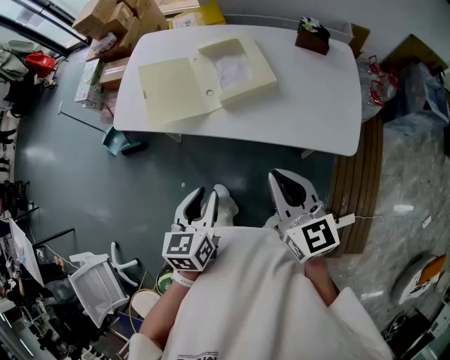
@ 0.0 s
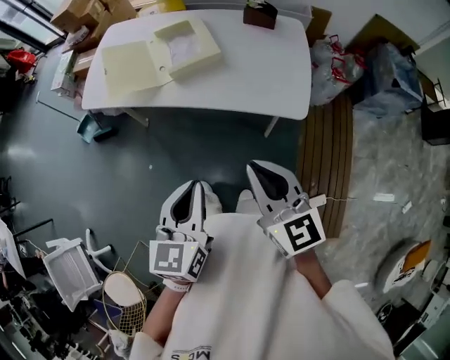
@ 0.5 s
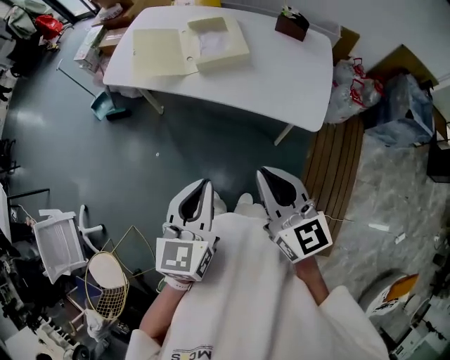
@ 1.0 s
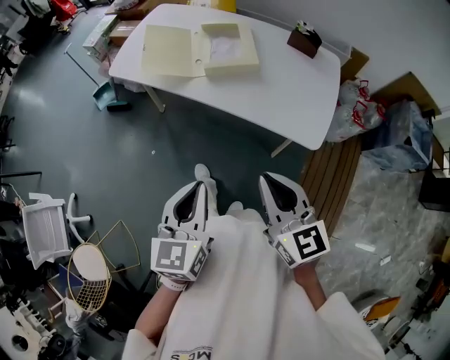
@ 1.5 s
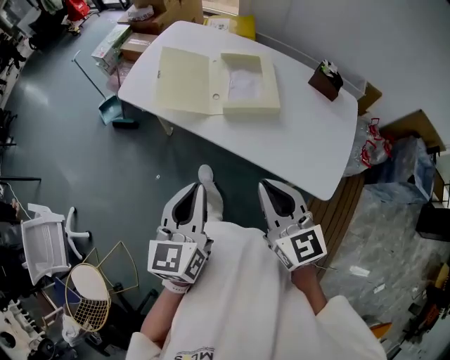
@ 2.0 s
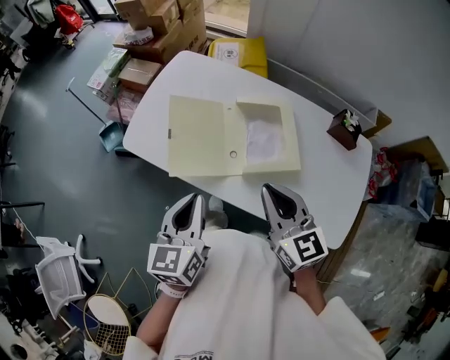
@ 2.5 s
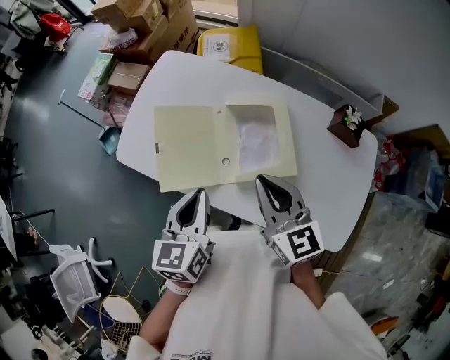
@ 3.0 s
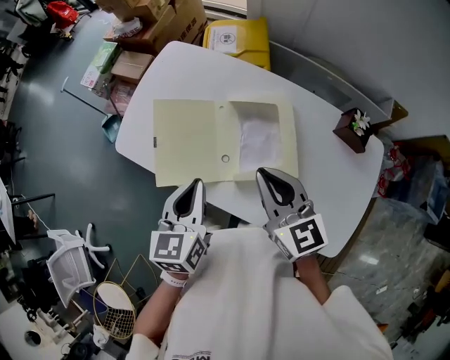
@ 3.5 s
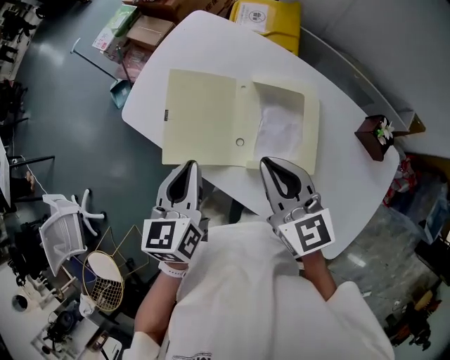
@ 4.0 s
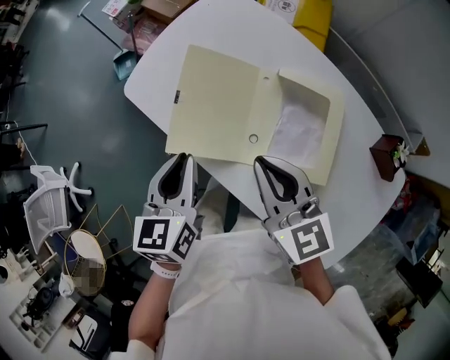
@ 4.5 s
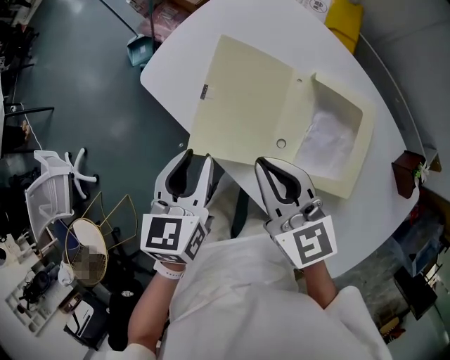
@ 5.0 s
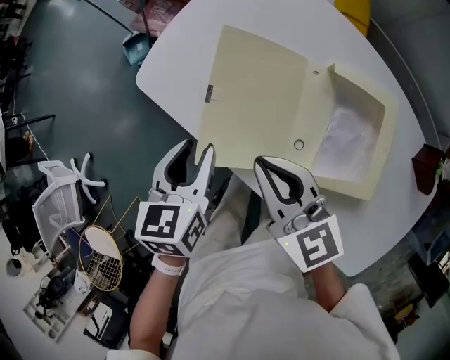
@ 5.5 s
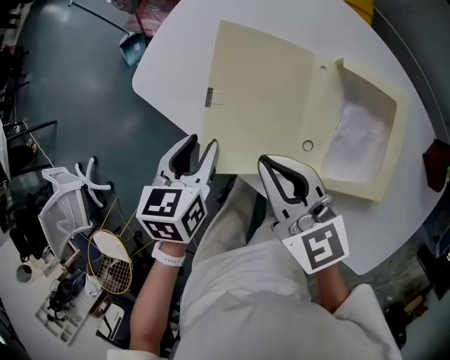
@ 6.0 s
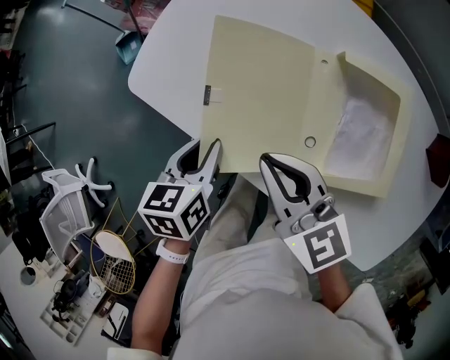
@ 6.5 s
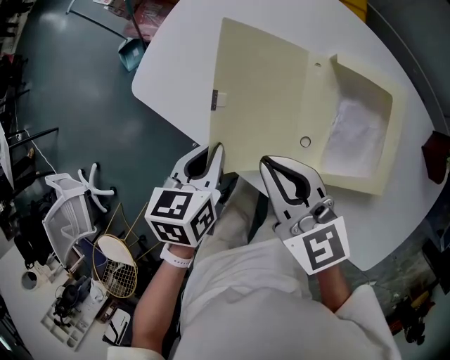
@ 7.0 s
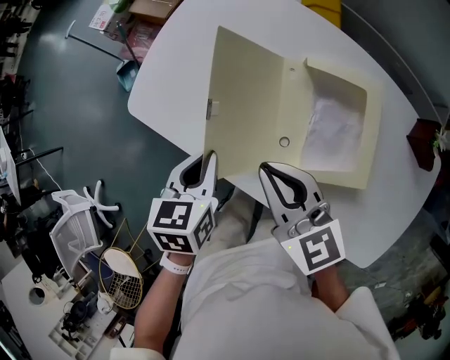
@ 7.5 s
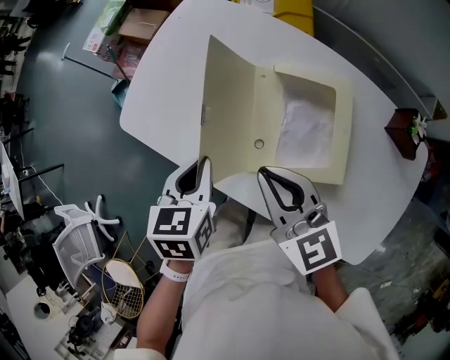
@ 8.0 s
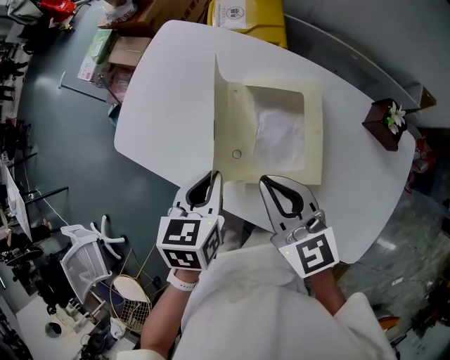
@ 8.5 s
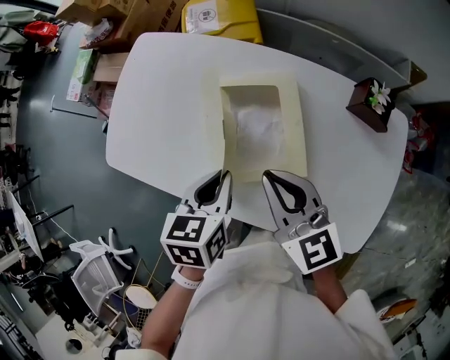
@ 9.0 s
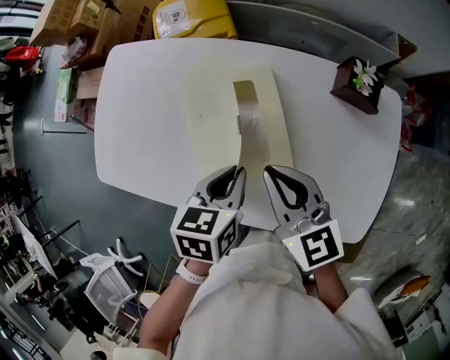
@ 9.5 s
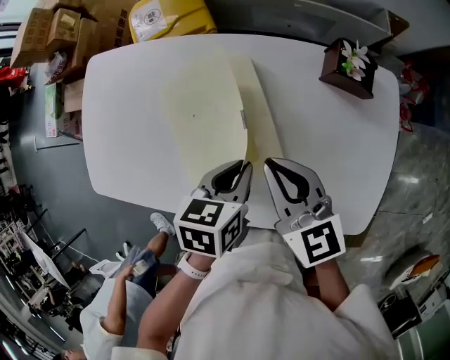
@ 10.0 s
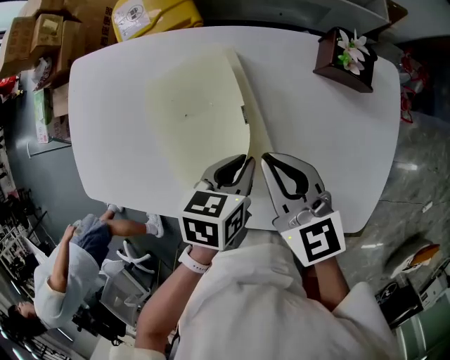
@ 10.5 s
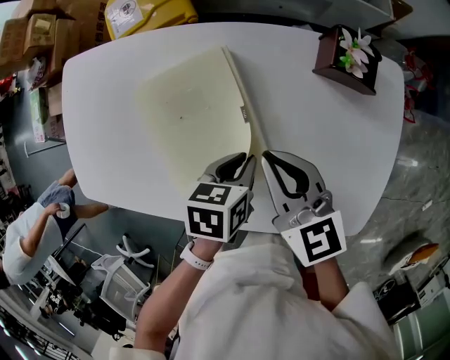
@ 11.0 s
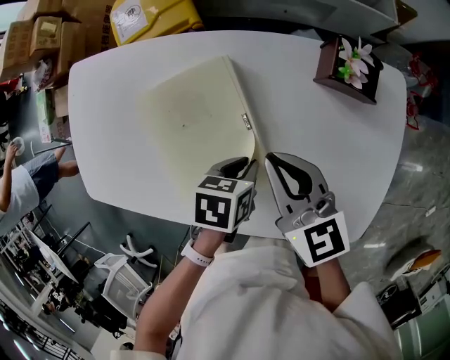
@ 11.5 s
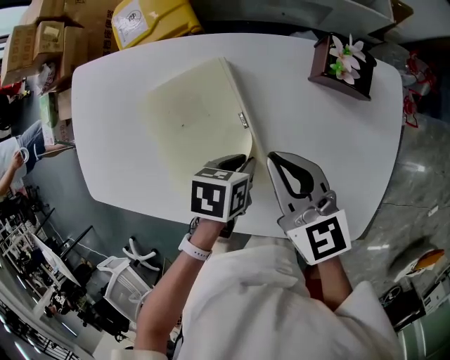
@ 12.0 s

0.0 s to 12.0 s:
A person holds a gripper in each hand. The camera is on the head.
0.0 to 2.0 s: The right gripper moves about 15 cm backward and comes back, and turns by some 20 degrees, while the left gripper is displaced upward by roughly 10 cm, goes backward and returns, approximately 15 cm each way, swivels roughly 30 degrees, and closes its fingers.
2.0 to 4.0 s: Both grippers move forward, approximately 35 cm.
4.0 to 6.0 s: The right gripper goes some 20 cm to the left, downward and forward; the left gripper is displaced downward, to the left and forward by roughly 25 cm, changes its angle by approximately 20 degrees, and opens up.
6.0 to 8.0 s: The grippers both shift to the right and upward by about 15 cm. The left gripper closes up.
8.0 to 10.0 s: The left gripper changes place by roughly 30 cm, and swivels some 30 degrees; the right gripper shifts by some 25 cm, and changes its angle by roughly 30 degrees.
10.0 to 12.0 s: The right gripper moves about 10 cm. The left gripper is displaced downward by about 10 cm, and changes its angle by some 20 degrees.

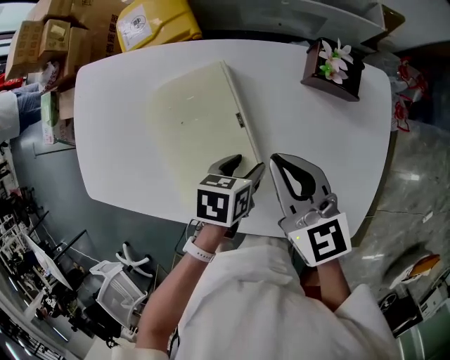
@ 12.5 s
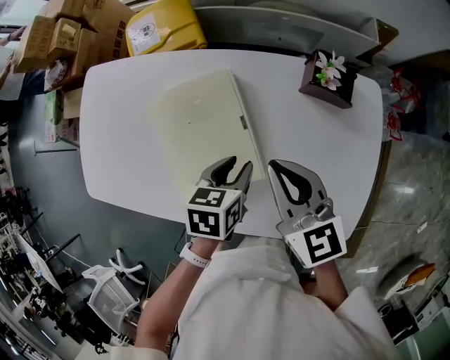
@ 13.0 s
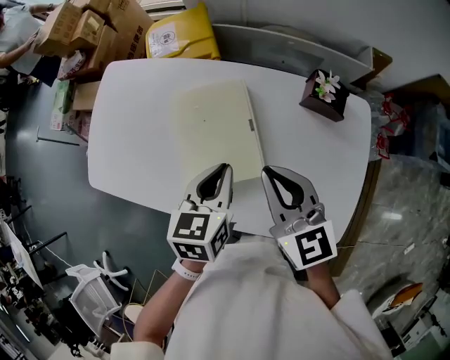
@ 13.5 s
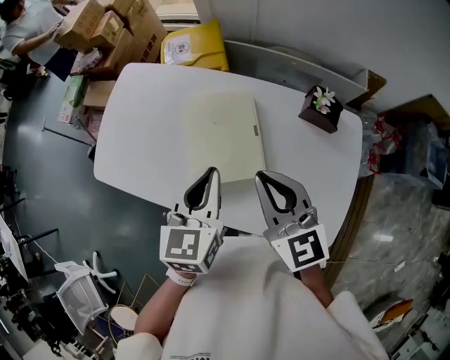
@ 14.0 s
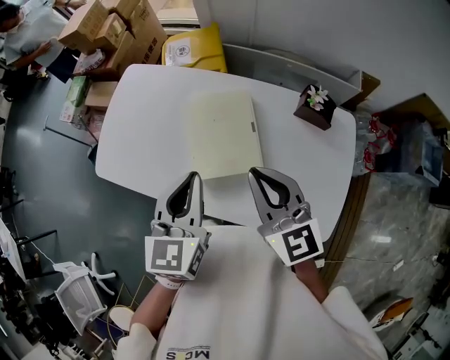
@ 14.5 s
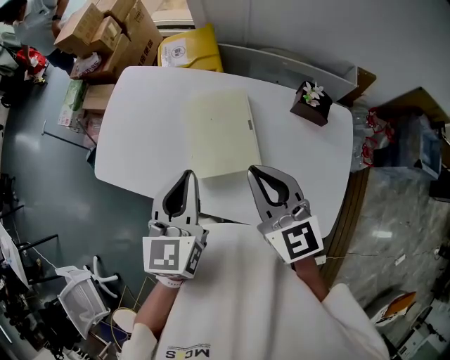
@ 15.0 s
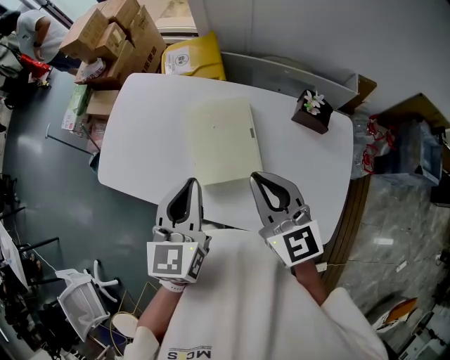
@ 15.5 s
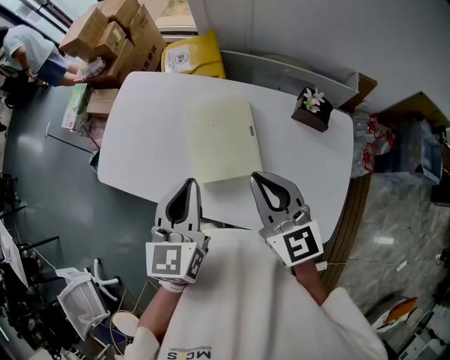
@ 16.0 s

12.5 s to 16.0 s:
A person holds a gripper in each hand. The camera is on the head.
12.5 to 14.5 s: The right gripper moves upward, approximately 15 cm. The left gripper heads upward, covering about 30 cm, tilts its fingers about 40 degrees upward, and closes its fingers.
14.5 to 16.0 s: Both grippers stay about where they are.

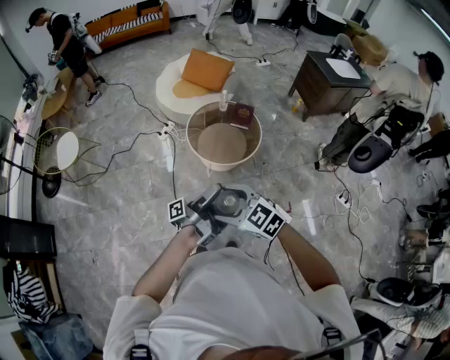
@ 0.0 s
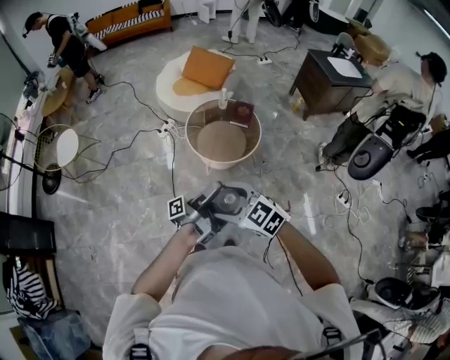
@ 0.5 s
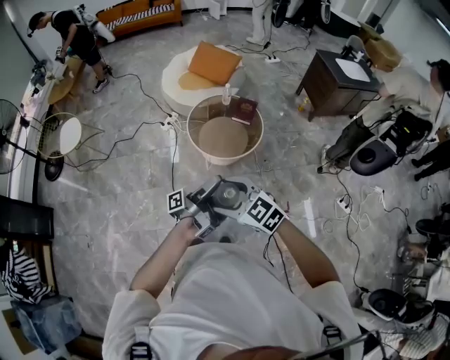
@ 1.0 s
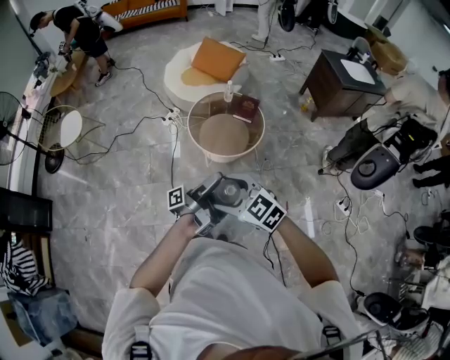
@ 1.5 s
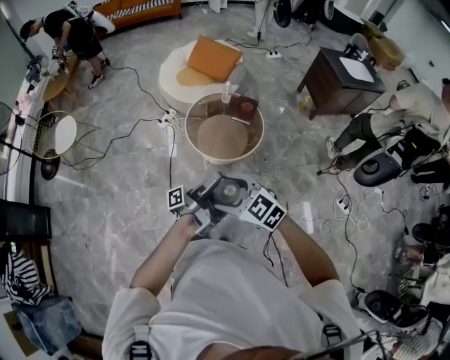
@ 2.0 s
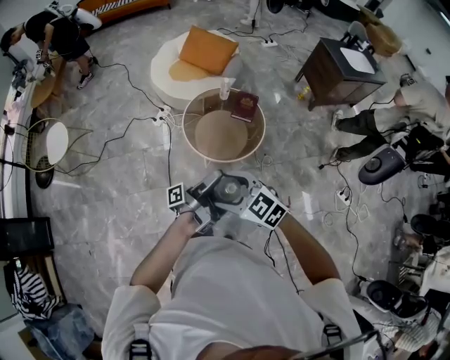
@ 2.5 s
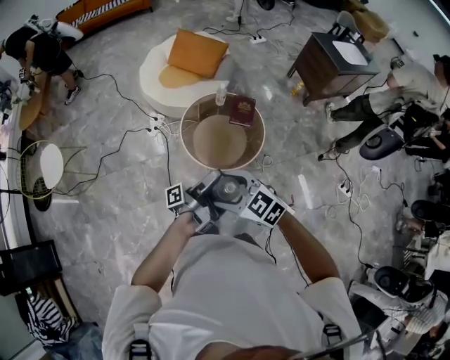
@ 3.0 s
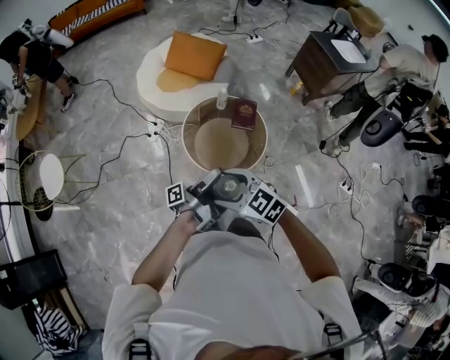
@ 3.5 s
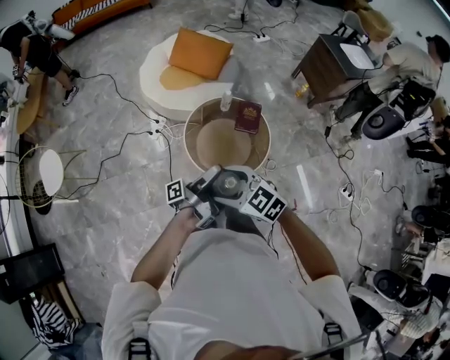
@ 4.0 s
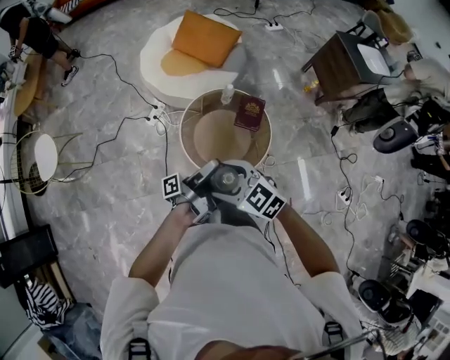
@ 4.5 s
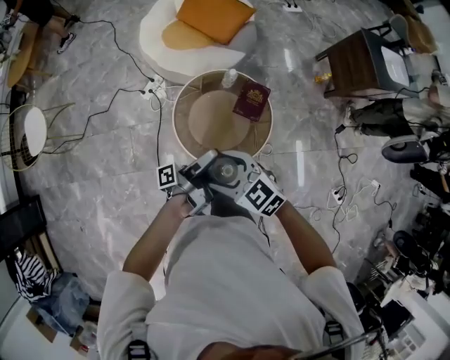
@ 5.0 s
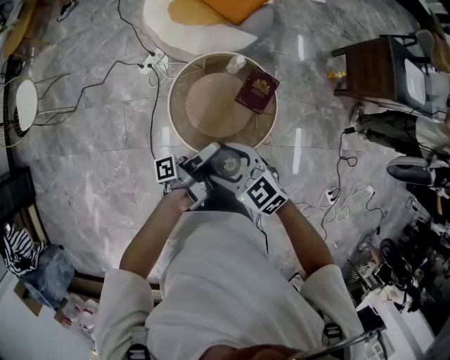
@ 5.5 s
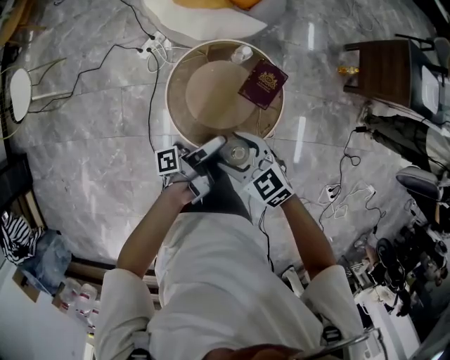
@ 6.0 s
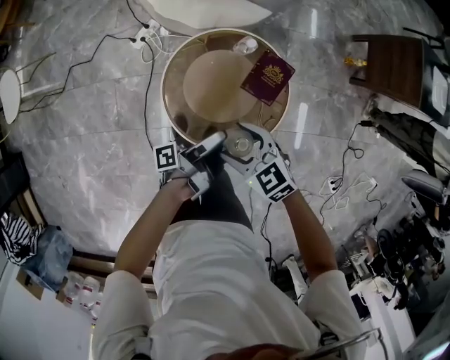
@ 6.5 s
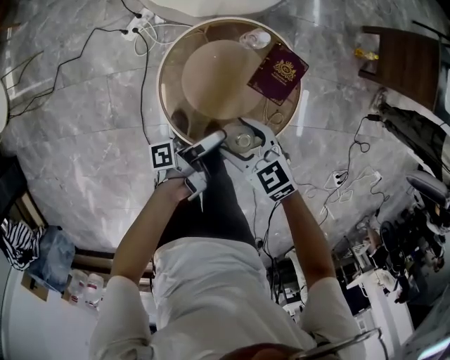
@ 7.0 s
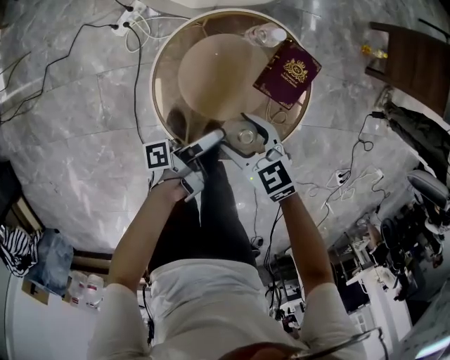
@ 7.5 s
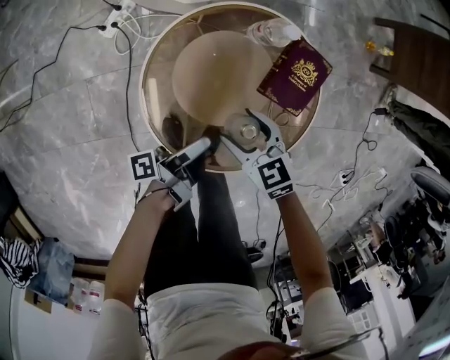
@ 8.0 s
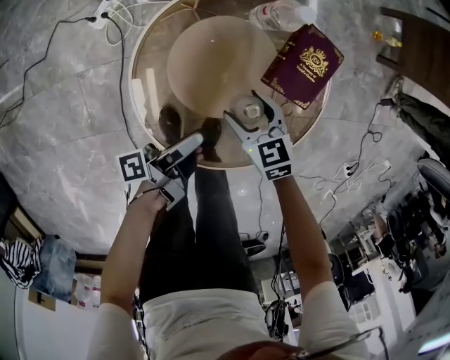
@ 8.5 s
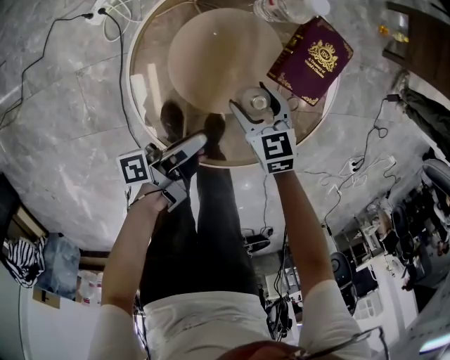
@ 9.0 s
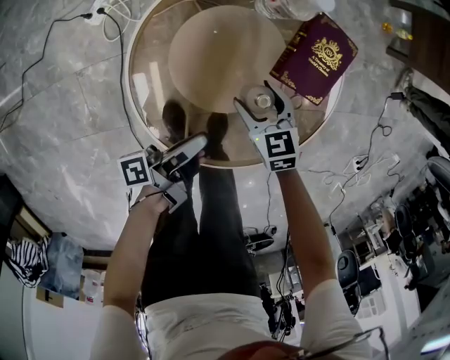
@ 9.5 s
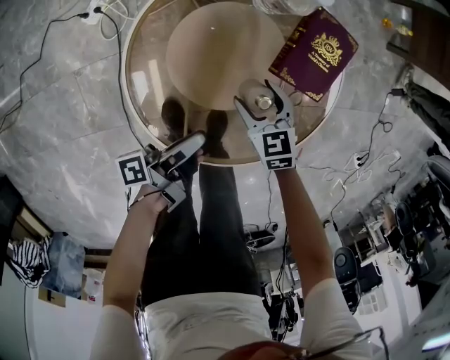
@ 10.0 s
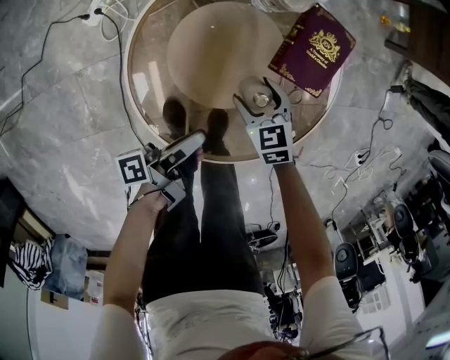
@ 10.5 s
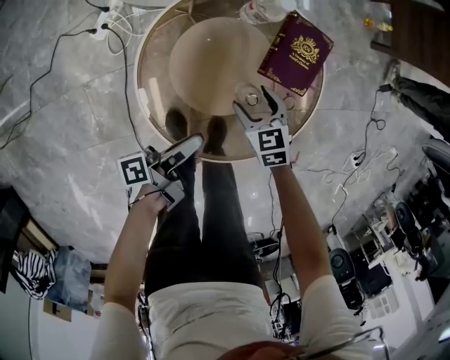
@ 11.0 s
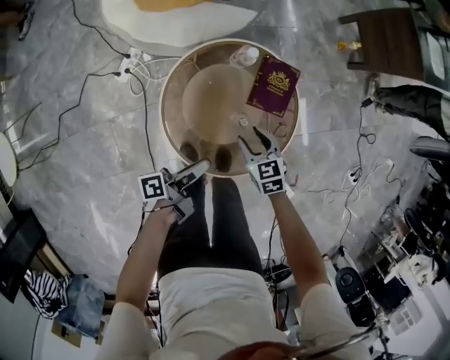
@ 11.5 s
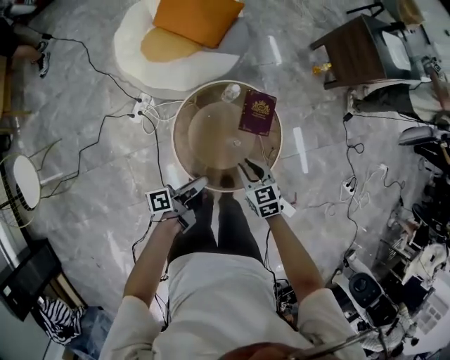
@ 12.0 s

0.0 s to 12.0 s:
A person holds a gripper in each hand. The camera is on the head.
0.0 to 2.0 s: The right gripper ends up some 10 cm from where it was.
2.0 to 4.0 s: The right gripper ends up approximately 30 cm from where it was.
4.0 to 6.0 s: The right gripper shifts by some 35 cm.
6.0 to 8.0 s: The right gripper travels downward by approximately 35 cm, and swivels about 20 degrees.
8.0 to 10.0 s: The right gripper shifts approximately 15 cm downward.
10.0 to 12.0 s: The right gripper goes some 40 cm upward, and closes.
